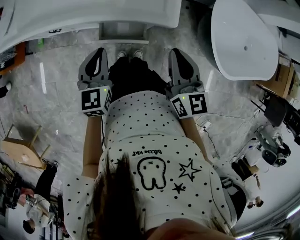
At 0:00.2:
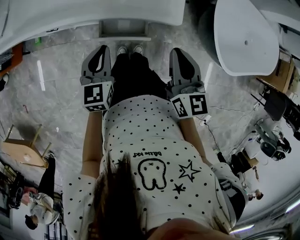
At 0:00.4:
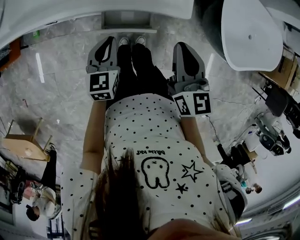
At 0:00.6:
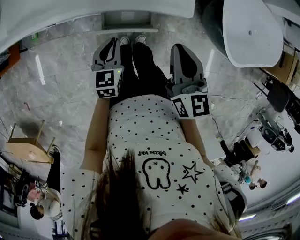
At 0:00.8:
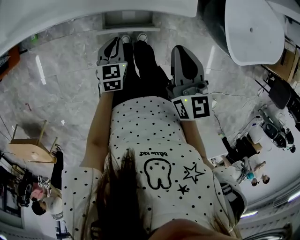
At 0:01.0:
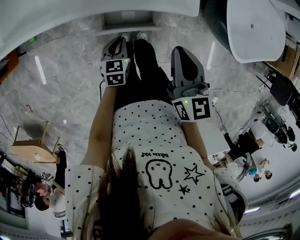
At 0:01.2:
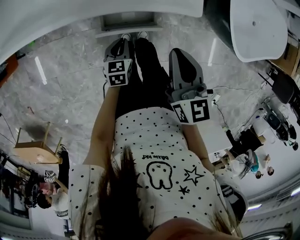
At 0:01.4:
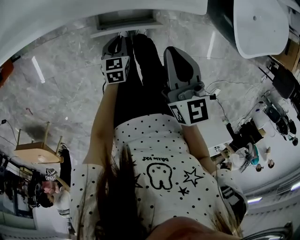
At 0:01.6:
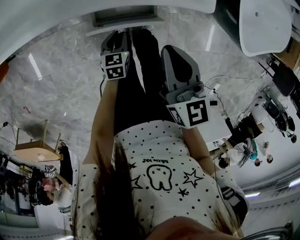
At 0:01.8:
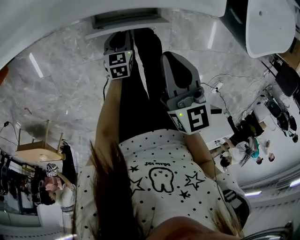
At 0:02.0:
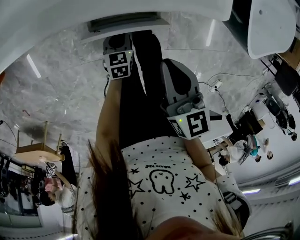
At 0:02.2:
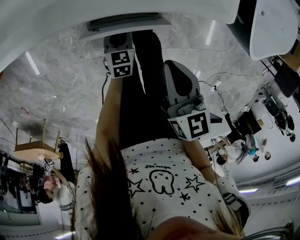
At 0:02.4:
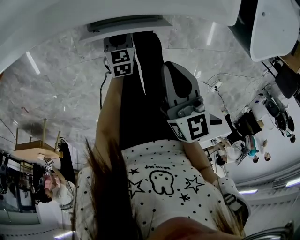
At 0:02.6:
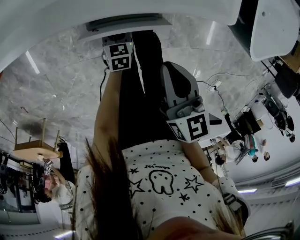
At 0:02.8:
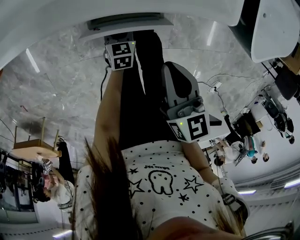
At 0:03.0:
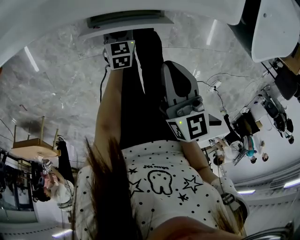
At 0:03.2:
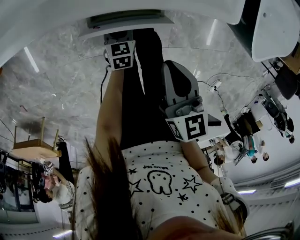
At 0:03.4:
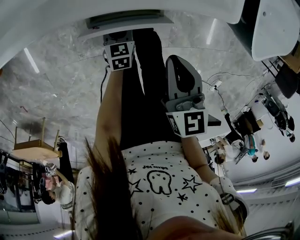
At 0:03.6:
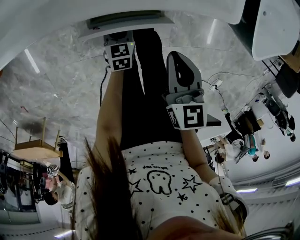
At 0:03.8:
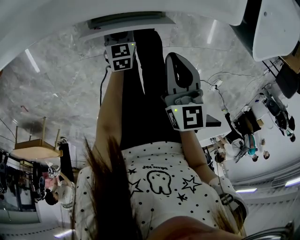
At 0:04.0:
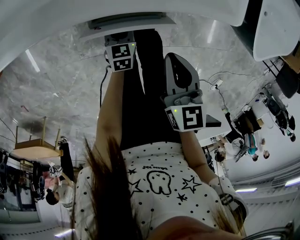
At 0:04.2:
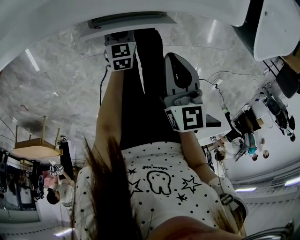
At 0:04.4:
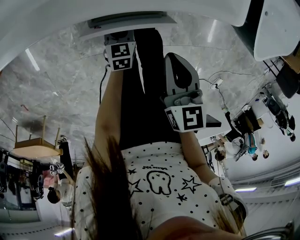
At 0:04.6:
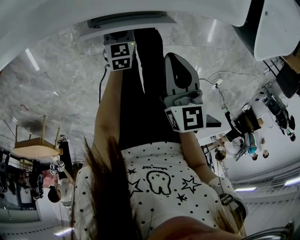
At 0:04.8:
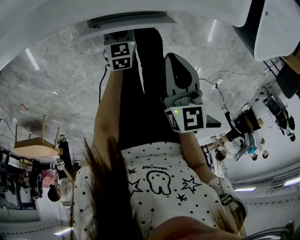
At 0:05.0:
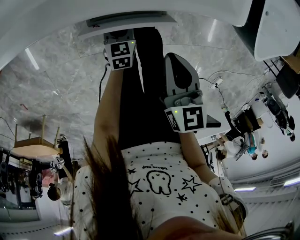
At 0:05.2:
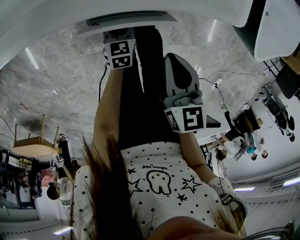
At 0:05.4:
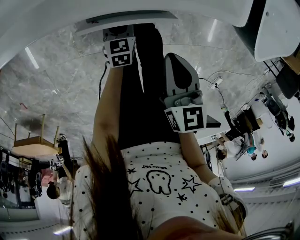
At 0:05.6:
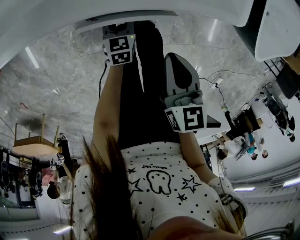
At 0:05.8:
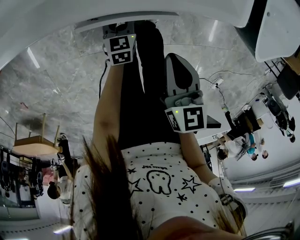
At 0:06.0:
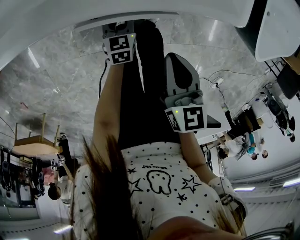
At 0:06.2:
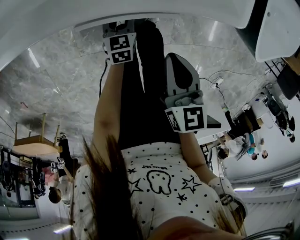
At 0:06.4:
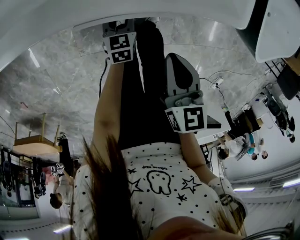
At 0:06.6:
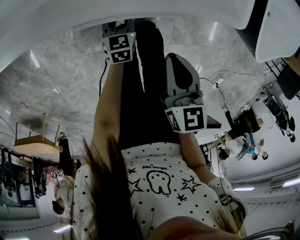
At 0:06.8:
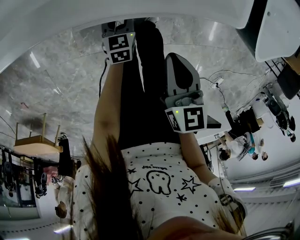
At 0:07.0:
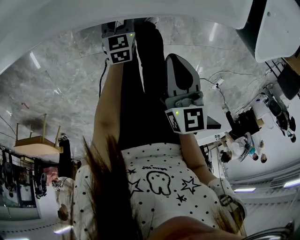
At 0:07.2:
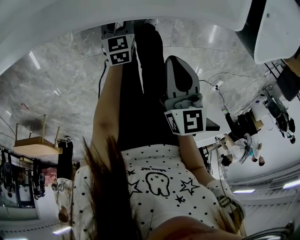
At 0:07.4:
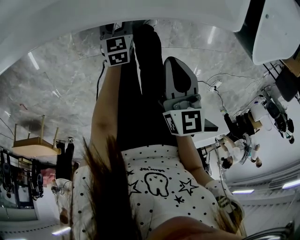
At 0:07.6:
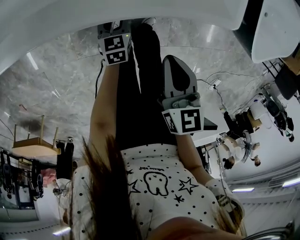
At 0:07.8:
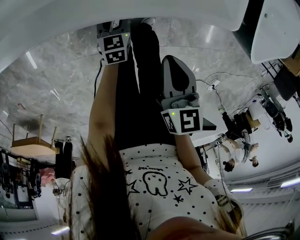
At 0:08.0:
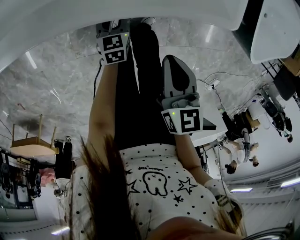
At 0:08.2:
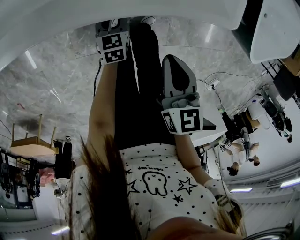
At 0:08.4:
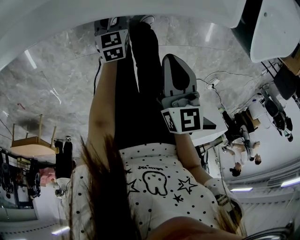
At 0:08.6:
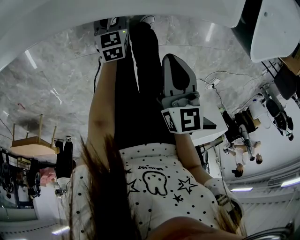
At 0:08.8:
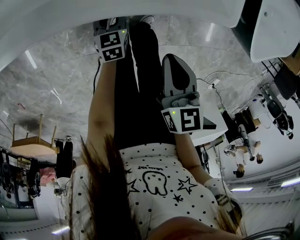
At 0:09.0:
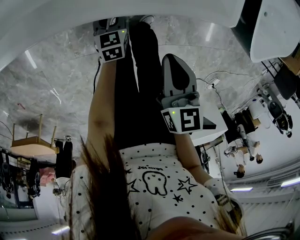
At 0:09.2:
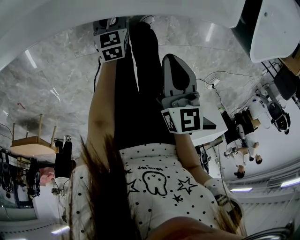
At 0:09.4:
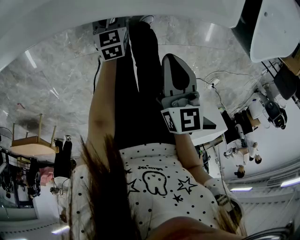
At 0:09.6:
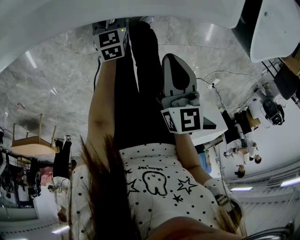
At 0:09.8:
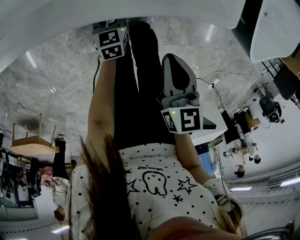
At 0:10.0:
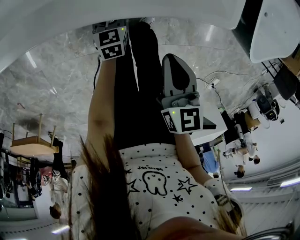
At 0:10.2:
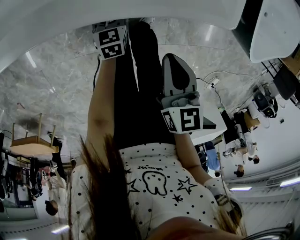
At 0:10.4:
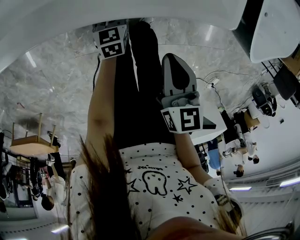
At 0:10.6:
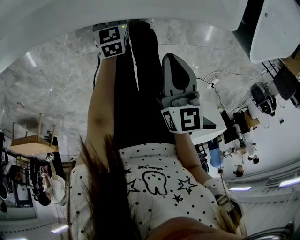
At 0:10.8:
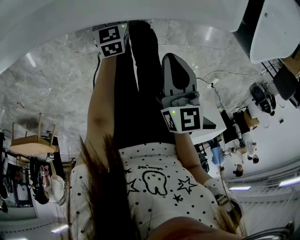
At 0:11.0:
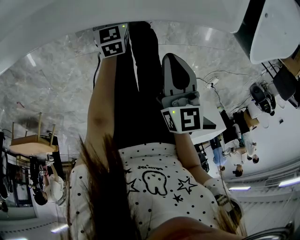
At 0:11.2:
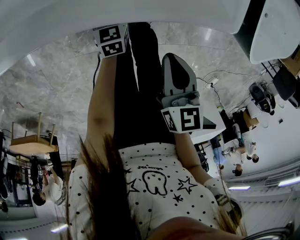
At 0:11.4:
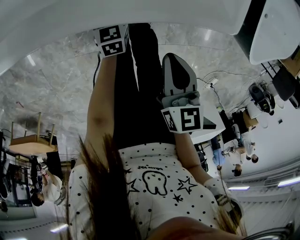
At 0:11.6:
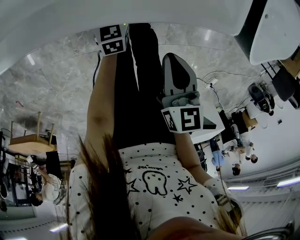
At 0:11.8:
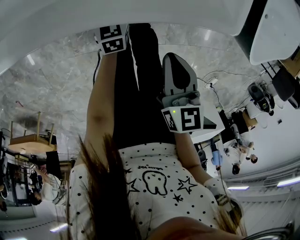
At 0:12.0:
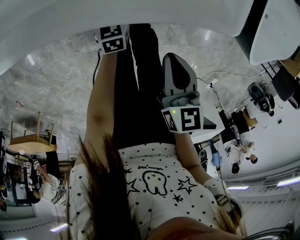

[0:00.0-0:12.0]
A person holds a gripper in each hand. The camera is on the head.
0:00.0 to 0:01.6: The left gripper heads downward, covering about 35 cm, and turns by roughly 30 degrees. The right gripper is displaced downward and to the left by some 15 cm.
0:01.6 to 0:03.0: Both grippers move downward, roughly 10 cm.
0:03.0 to 0:07.6: The grippers make only small movements.
0:07.6 to 0:09.0: The two grippers keep their place.
0:09.0 to 0:12.0: The grippers make only small movements.

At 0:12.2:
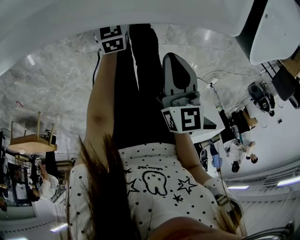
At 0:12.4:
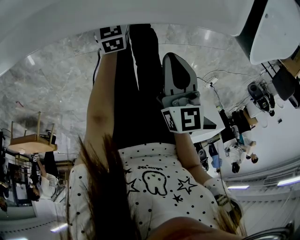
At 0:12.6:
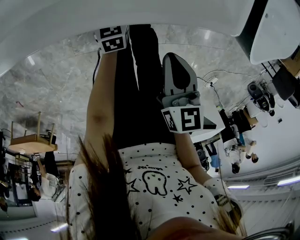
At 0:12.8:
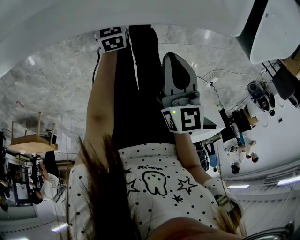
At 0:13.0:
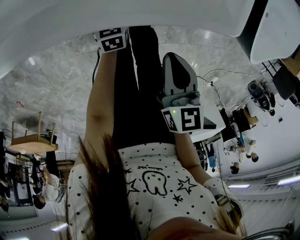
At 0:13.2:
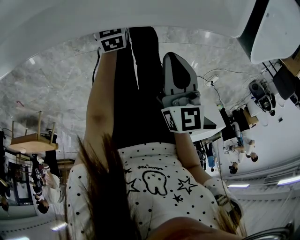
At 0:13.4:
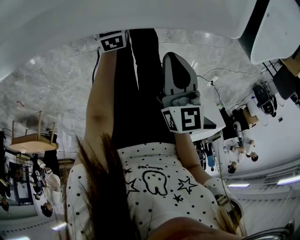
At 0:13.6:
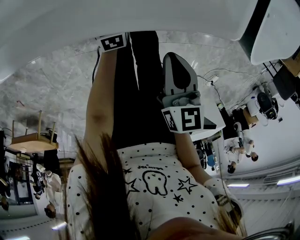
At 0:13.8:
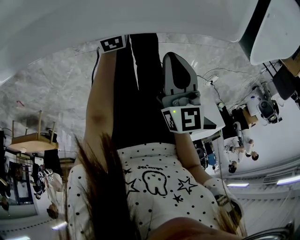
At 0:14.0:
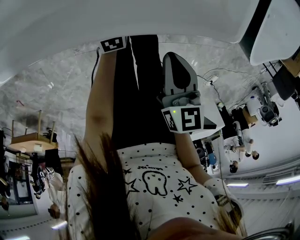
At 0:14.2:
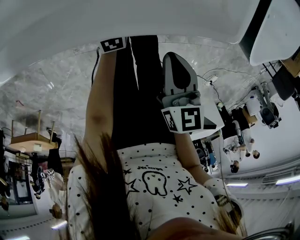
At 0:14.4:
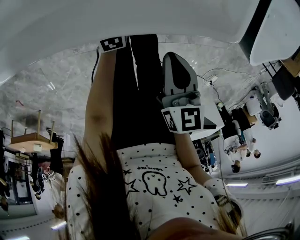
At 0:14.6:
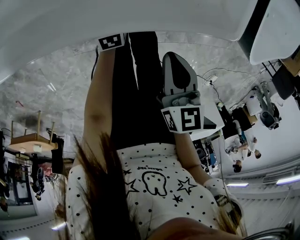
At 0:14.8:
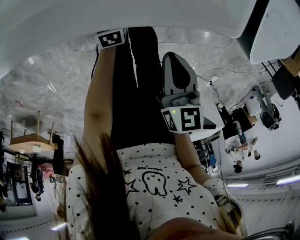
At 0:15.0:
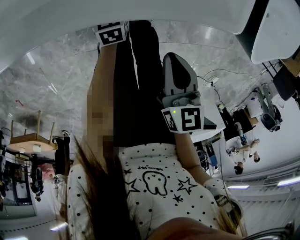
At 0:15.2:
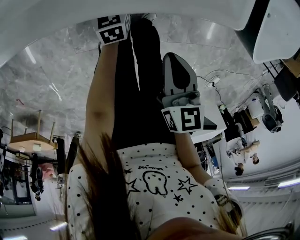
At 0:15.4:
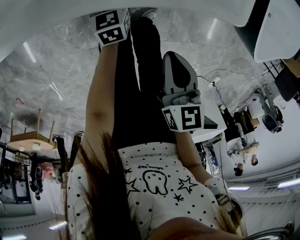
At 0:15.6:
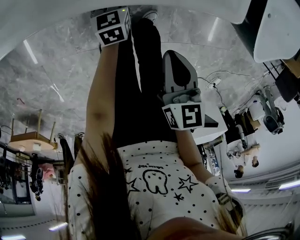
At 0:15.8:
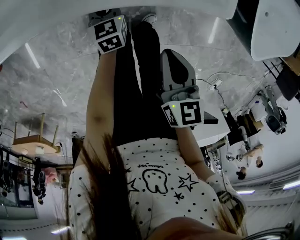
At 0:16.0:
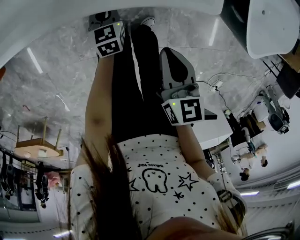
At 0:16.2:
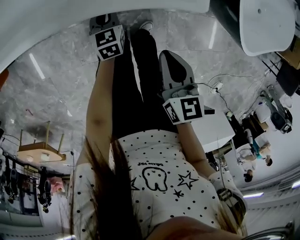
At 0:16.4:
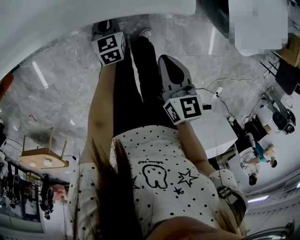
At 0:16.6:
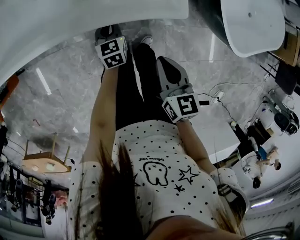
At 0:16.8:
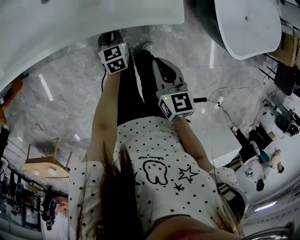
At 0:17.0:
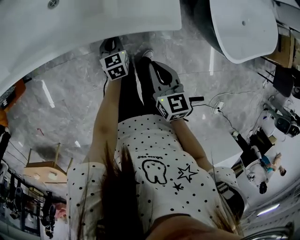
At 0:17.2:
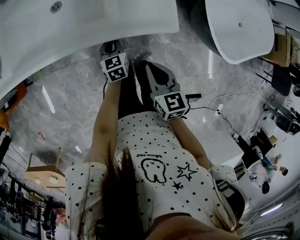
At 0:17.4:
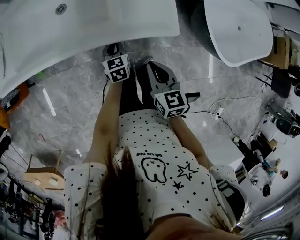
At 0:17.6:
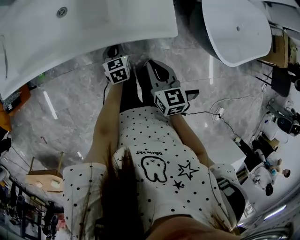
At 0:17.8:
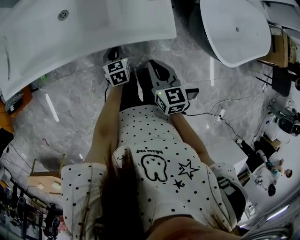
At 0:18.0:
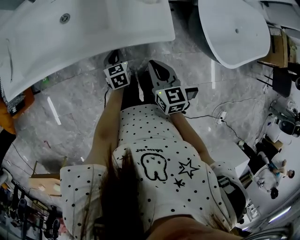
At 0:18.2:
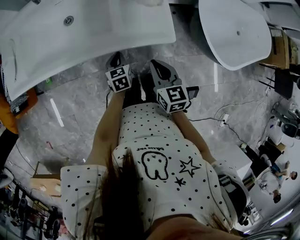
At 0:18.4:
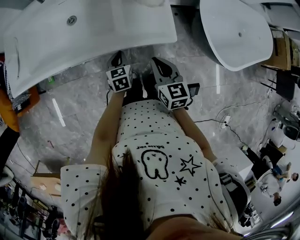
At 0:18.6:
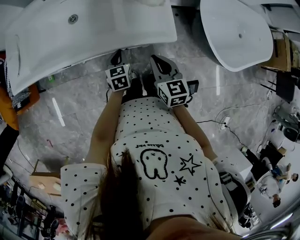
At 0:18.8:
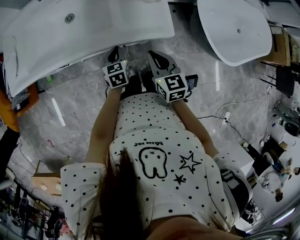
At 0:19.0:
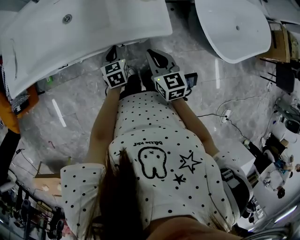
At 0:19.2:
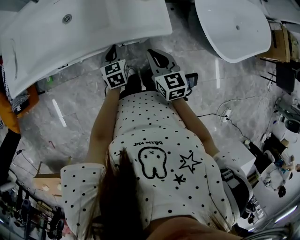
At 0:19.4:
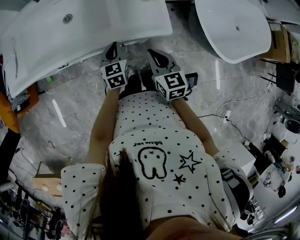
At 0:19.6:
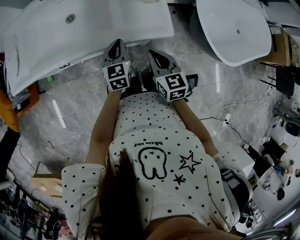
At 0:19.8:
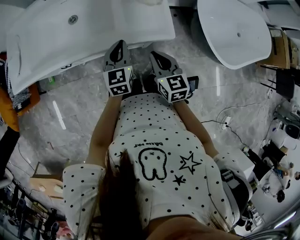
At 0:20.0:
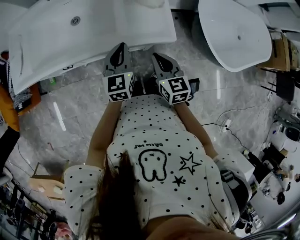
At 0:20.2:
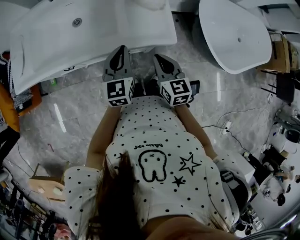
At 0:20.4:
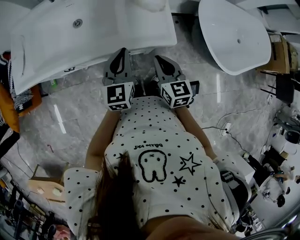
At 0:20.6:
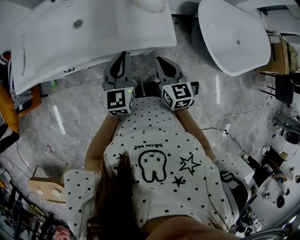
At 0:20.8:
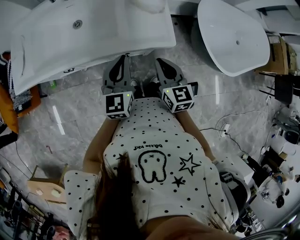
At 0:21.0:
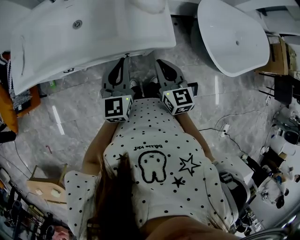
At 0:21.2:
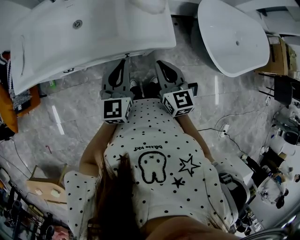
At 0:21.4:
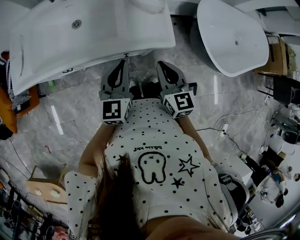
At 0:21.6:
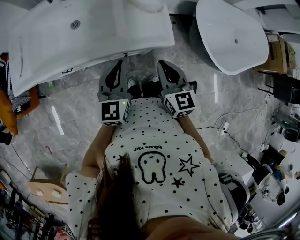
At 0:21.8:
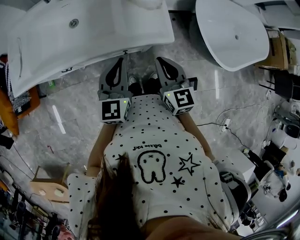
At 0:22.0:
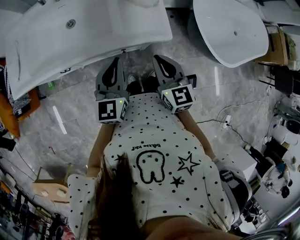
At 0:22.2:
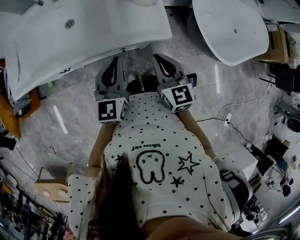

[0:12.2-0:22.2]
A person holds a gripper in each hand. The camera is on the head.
0:12.2 to 0:15.0: The grippers stay close to where they were, moving slightly.
0:15.0 to 0:16.4: The right gripper shifts some 5 cm upward. Meanwhile the left gripper travels upward by about 10 cm, and closes its fingers.
0:16.4 to 0:18.0: The right gripper goes about 10 cm upward and forward. Meanwhile the left gripper goes approximately 10 cm upward.
0:18.0 to 0:19.4: The left gripper shifts some 10 cm upward.
0:19.4 to 0:20.8: The left gripper is displaced upward by roughly 15 cm, and rotates about 20 degrees.
0:20.8 to 0:22.2: There are only small adjustments of the grippers.

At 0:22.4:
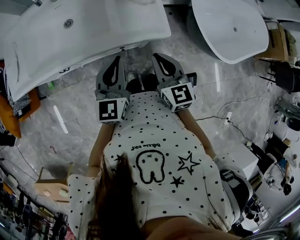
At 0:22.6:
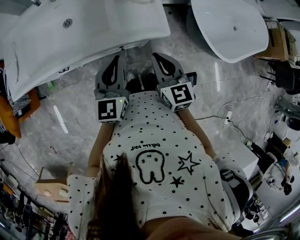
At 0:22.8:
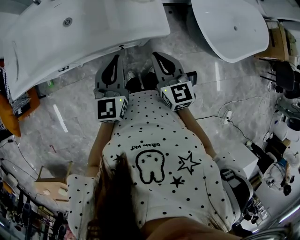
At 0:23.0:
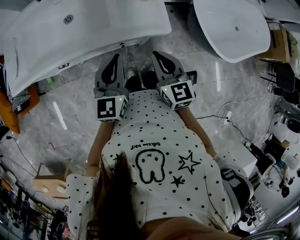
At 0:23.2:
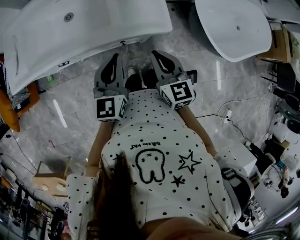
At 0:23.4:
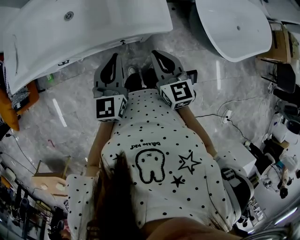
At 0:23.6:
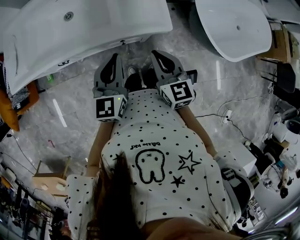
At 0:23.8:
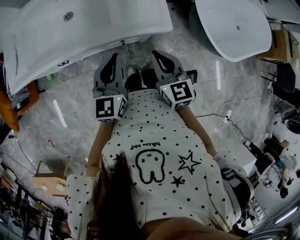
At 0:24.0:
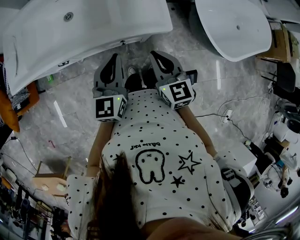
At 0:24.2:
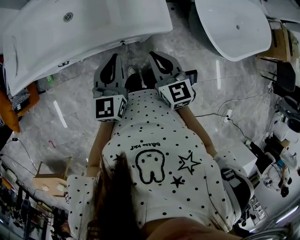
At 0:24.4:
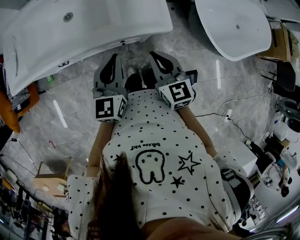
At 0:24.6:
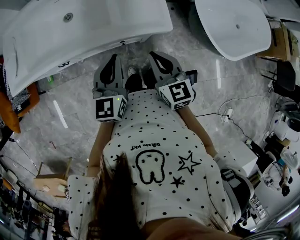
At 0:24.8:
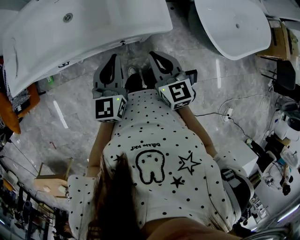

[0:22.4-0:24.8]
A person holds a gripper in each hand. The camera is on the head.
0:22.4 to 0:23.6: The grippers stay close to where they were, moving slightly.
0:23.6 to 0:24.8: The two grippers keep their place.
